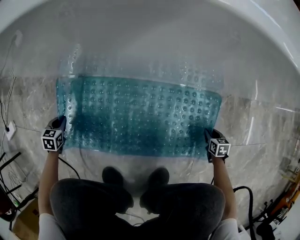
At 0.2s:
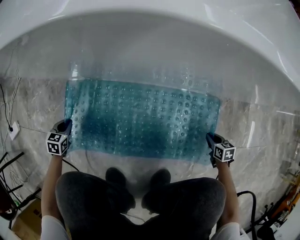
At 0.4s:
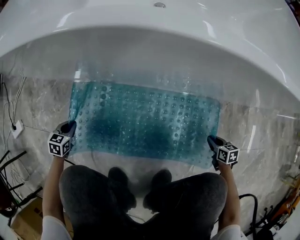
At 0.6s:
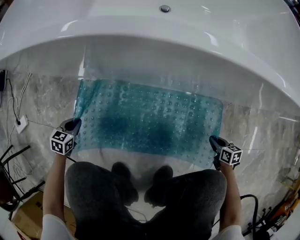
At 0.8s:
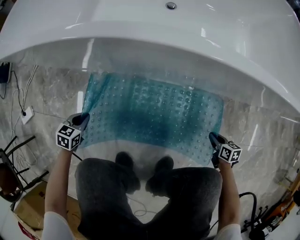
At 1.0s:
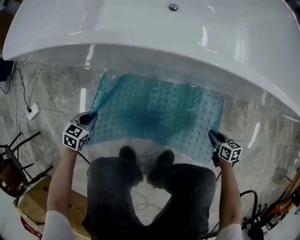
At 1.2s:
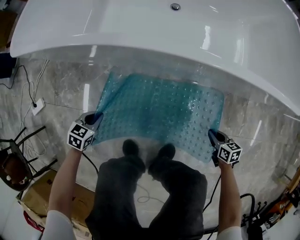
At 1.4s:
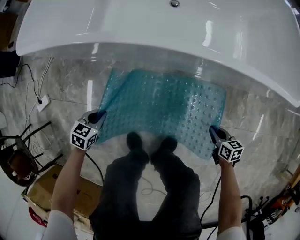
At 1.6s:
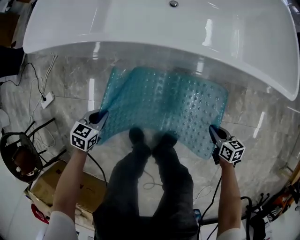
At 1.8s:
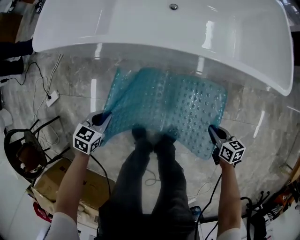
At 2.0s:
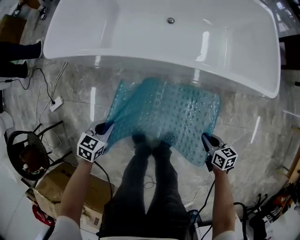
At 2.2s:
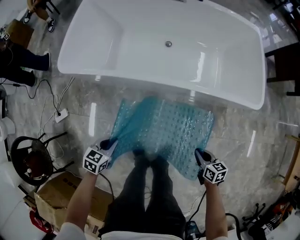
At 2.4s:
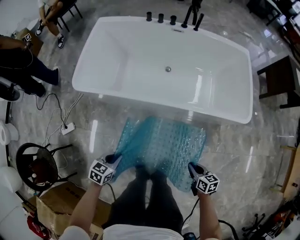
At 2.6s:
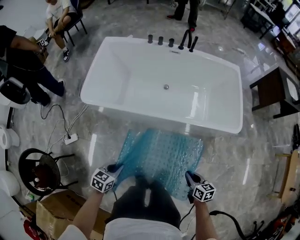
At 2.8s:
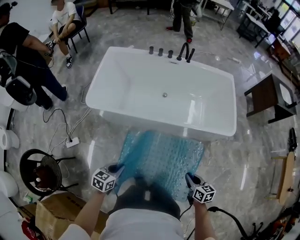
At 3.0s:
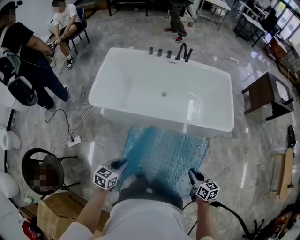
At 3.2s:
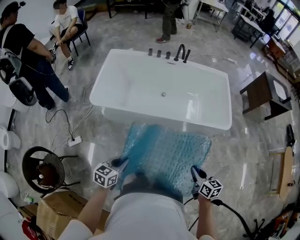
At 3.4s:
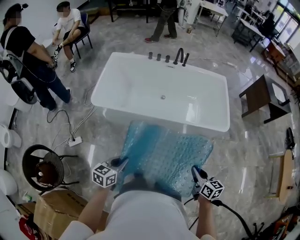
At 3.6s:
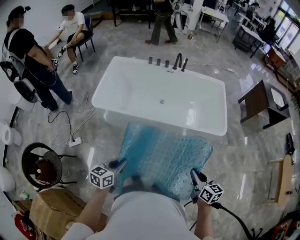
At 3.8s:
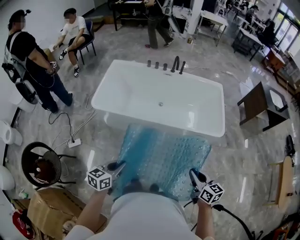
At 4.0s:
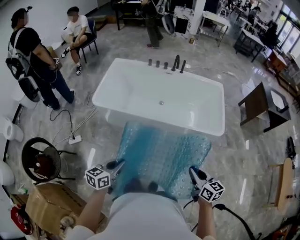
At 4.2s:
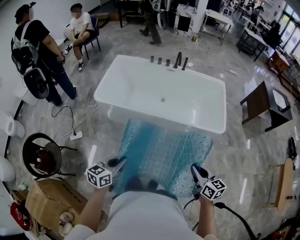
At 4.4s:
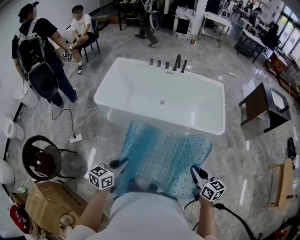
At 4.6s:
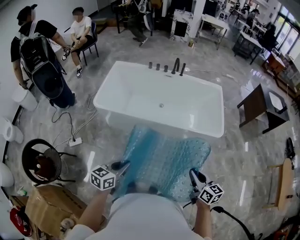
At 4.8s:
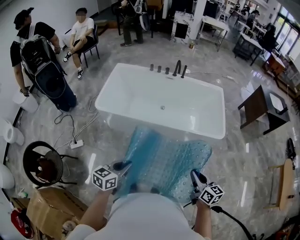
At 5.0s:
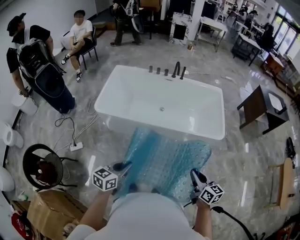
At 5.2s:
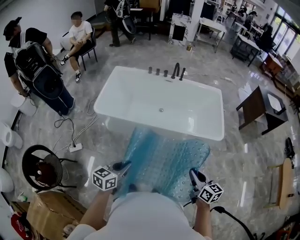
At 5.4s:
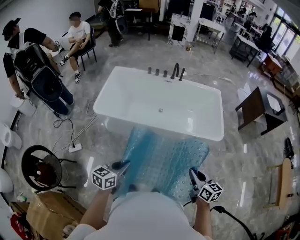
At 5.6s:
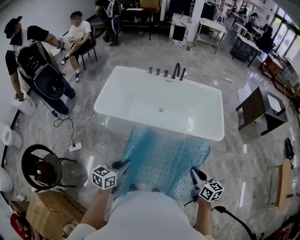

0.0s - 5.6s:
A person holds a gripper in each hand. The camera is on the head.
0.0s - 1.4s: Both grippers travel together upward, approximately 35 cm. The right gripper swivels approximately 20 degrees.
1.4s - 2.8s: Both grippers move upward, about 70 cm.
2.8s - 4.2s: Both grippers move upward, backward and to the right, approximately 30 cm.
4.2s - 5.6s: The right gripper shifts some 5 cm to the left, while the left gripper changes place by about 5 cm.

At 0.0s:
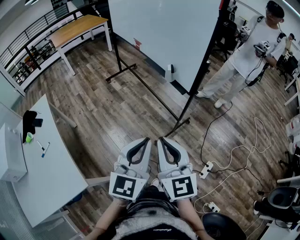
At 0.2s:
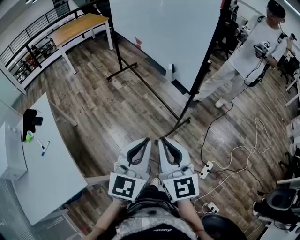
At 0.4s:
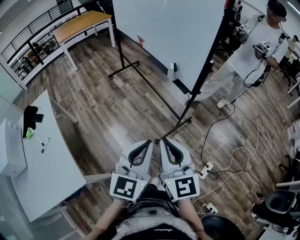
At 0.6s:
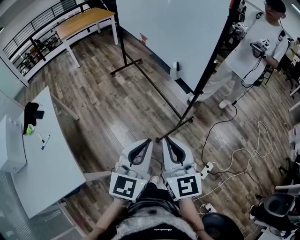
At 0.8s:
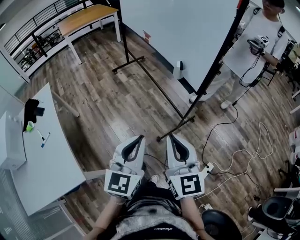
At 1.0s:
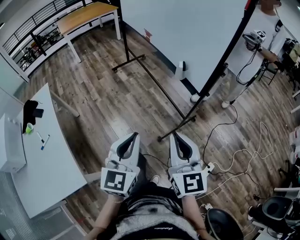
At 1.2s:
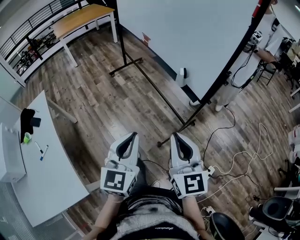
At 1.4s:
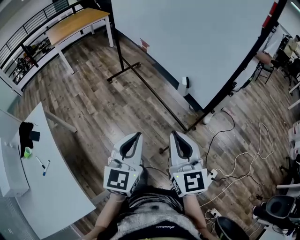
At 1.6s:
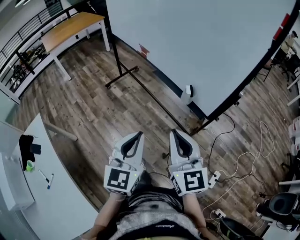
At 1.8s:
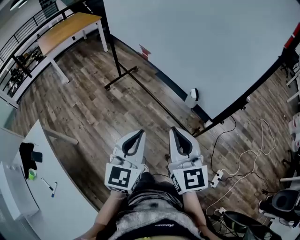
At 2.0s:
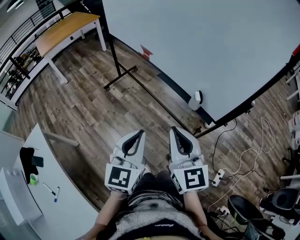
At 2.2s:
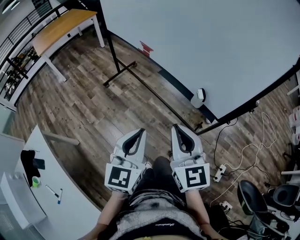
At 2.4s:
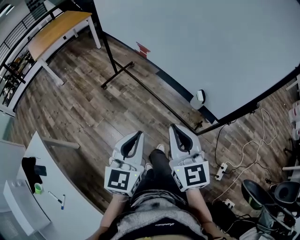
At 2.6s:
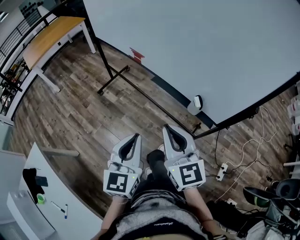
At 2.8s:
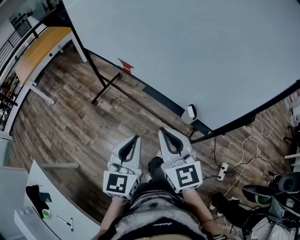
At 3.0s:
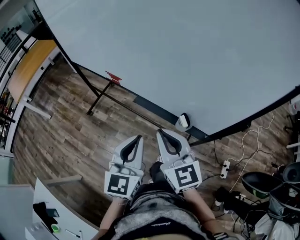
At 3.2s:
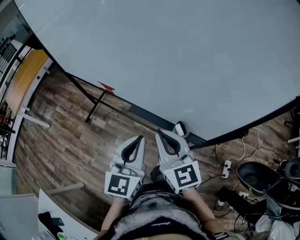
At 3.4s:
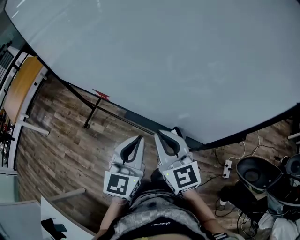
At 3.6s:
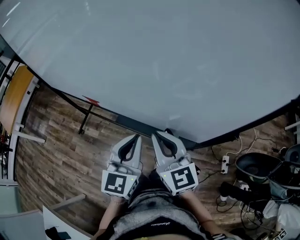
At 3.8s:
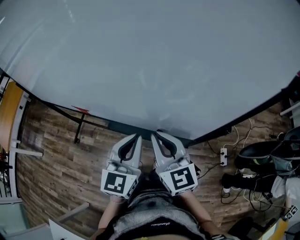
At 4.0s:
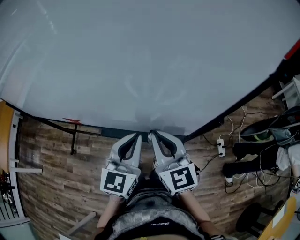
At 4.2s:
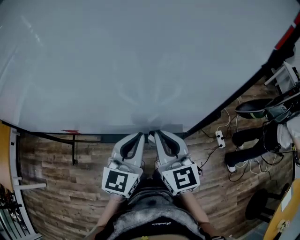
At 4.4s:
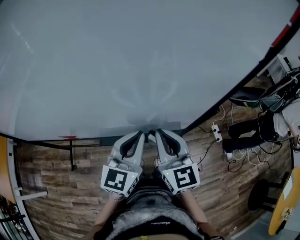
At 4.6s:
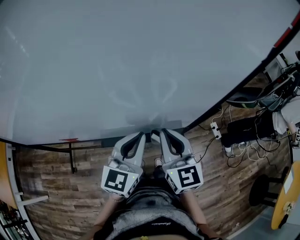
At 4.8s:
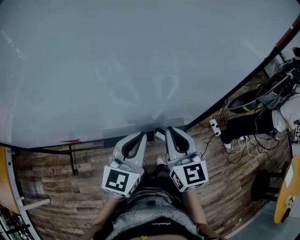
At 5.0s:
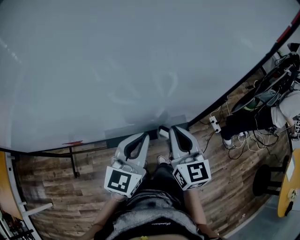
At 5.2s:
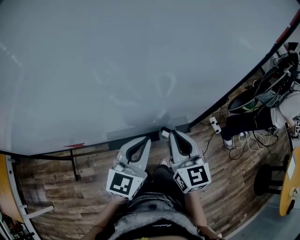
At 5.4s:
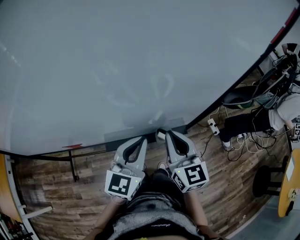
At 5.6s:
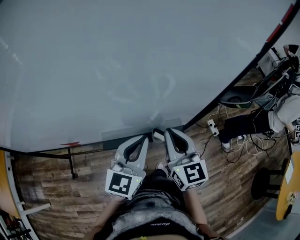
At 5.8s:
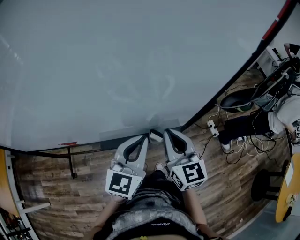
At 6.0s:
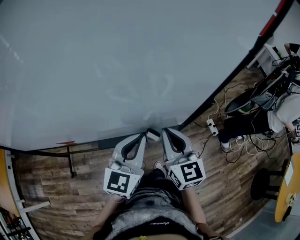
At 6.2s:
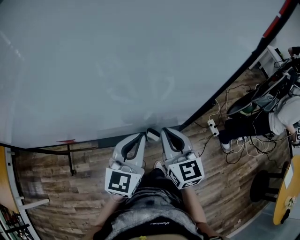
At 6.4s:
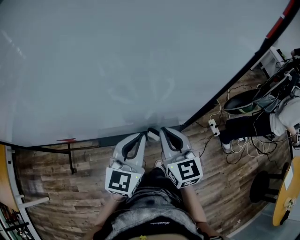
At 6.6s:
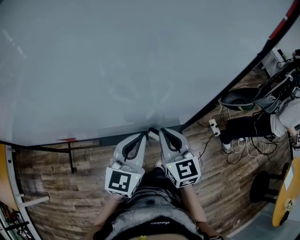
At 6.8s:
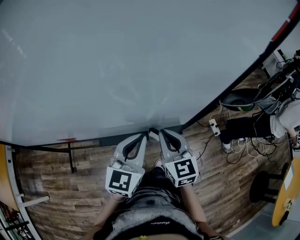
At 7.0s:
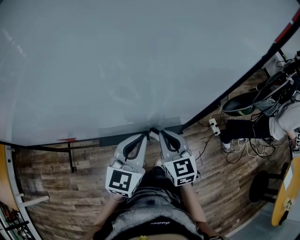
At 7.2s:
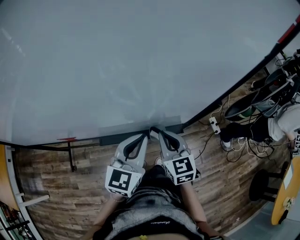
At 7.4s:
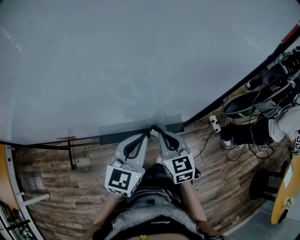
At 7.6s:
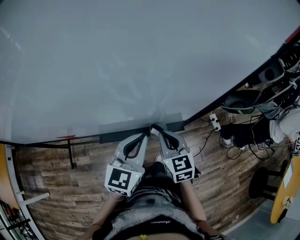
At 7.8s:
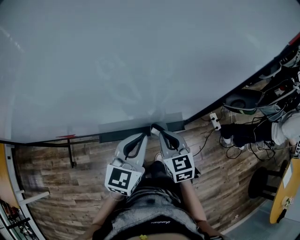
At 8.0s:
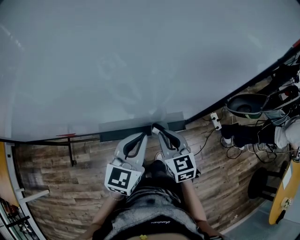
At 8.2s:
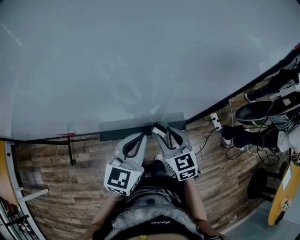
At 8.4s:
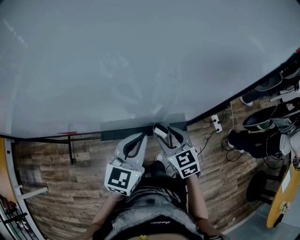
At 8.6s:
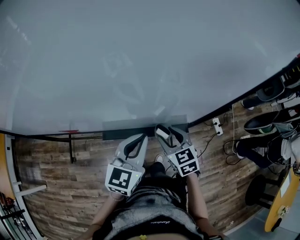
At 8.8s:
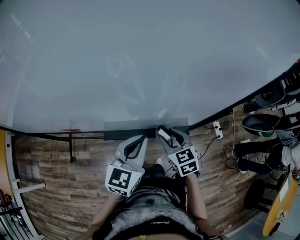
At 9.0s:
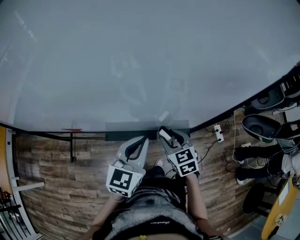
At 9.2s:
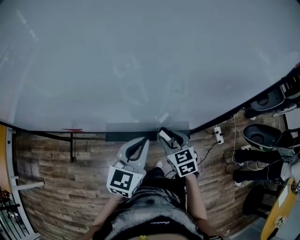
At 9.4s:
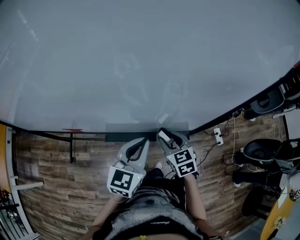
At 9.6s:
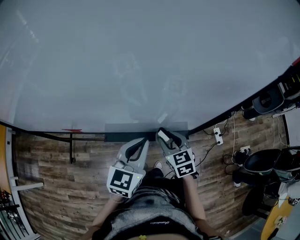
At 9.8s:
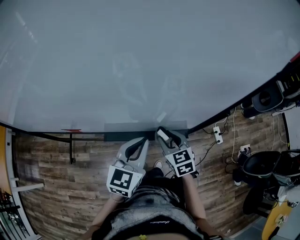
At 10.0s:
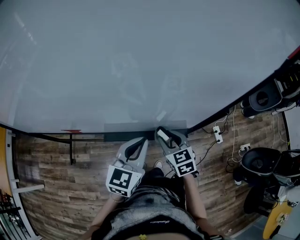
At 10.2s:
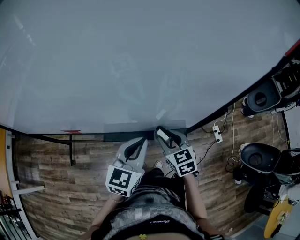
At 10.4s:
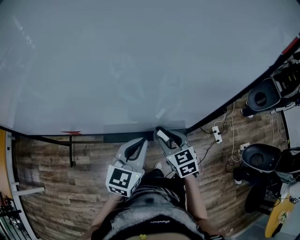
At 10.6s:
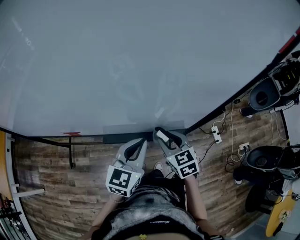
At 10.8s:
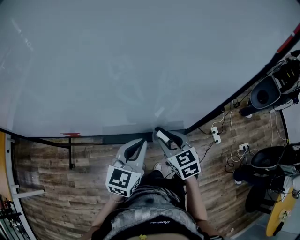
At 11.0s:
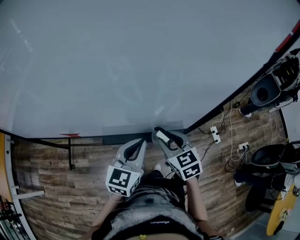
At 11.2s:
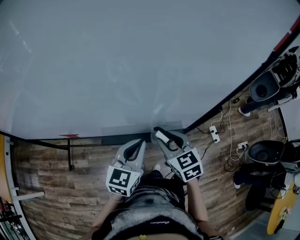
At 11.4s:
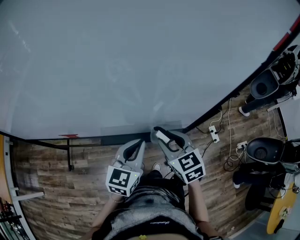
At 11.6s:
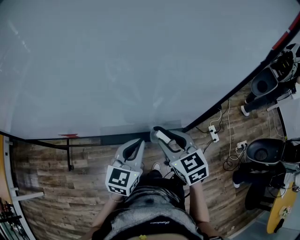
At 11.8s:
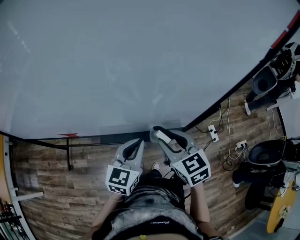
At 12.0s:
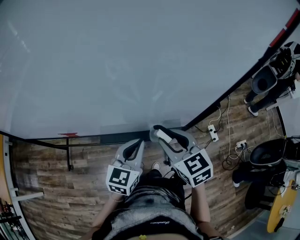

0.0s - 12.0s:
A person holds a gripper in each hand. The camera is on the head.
0.0s - 1.6s: The left gripper is displaced forward and to the left by about 30 cm. The right gripper moves forward, approximately 25 cm.
1.6s - 3.0s: The grippers both shift forward by some 25 cm.
3.0s - 4.4s: The left gripper shifts by about 20 cm, and turns by some 40 degrees. The right gripper ends up approximately 15 cm from where it was, and turns by roughly 40 degrees.
4.4s - 6.0s: The grippers stay close to where they were, moving slightly.
6.0s - 7.6s: The right gripper travels downward by approximately 10 cm.
7.6s - 9.0s: The right gripper opens its fingers.
9.0s - 10.4s: There are only small adjustments of the grippers.
10.4s - 12.0s: The right gripper goes some 10 cm upward.

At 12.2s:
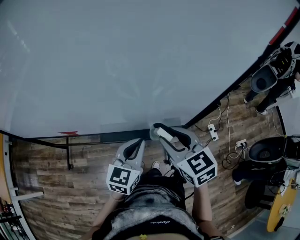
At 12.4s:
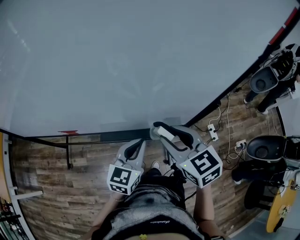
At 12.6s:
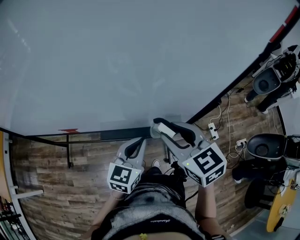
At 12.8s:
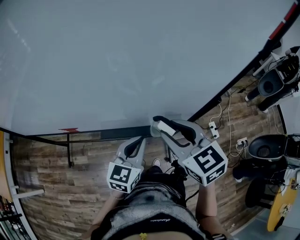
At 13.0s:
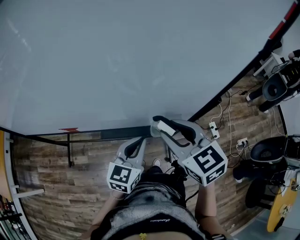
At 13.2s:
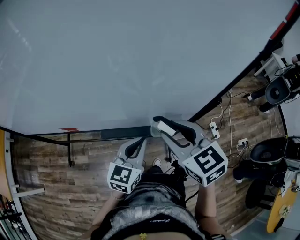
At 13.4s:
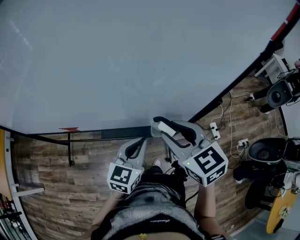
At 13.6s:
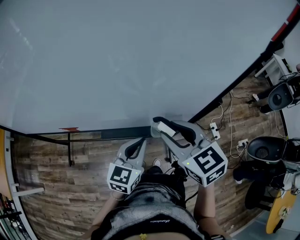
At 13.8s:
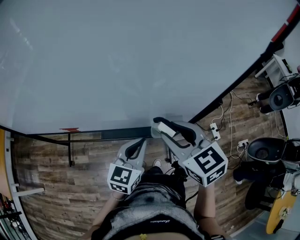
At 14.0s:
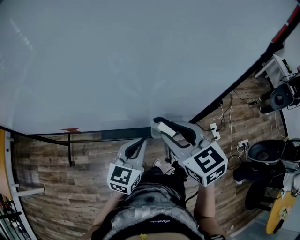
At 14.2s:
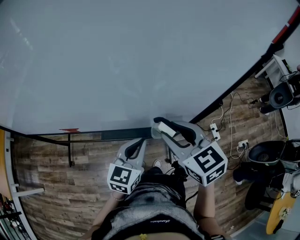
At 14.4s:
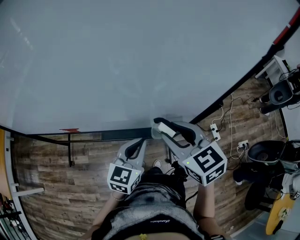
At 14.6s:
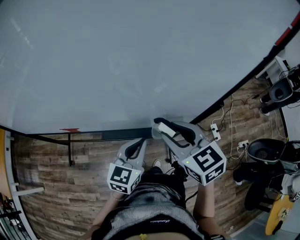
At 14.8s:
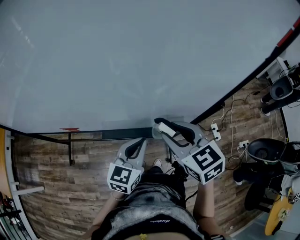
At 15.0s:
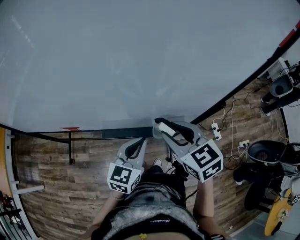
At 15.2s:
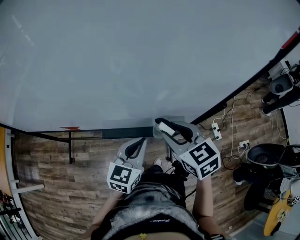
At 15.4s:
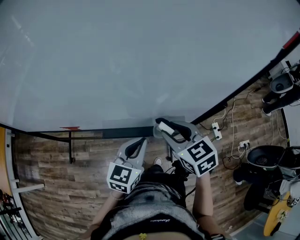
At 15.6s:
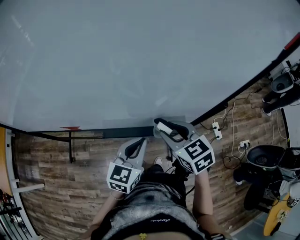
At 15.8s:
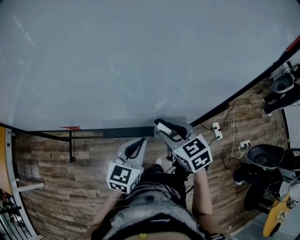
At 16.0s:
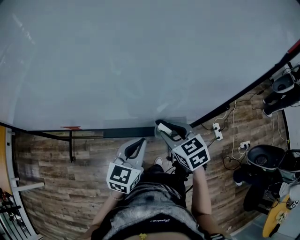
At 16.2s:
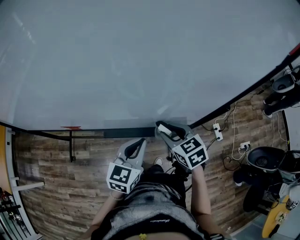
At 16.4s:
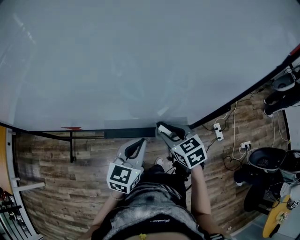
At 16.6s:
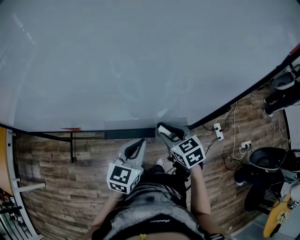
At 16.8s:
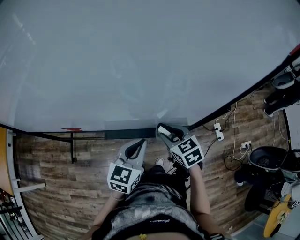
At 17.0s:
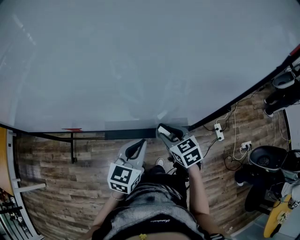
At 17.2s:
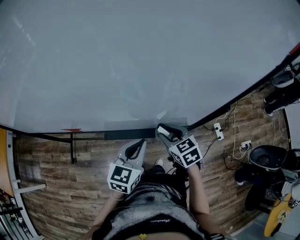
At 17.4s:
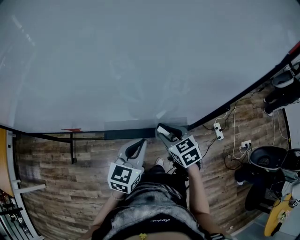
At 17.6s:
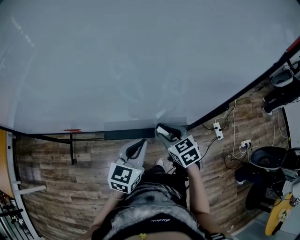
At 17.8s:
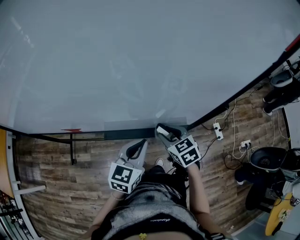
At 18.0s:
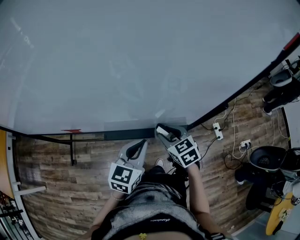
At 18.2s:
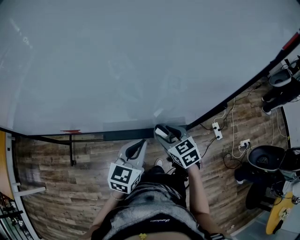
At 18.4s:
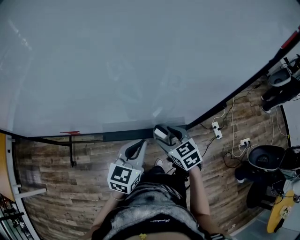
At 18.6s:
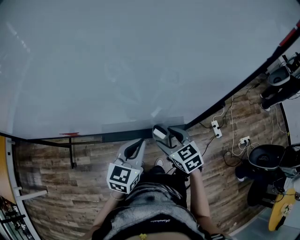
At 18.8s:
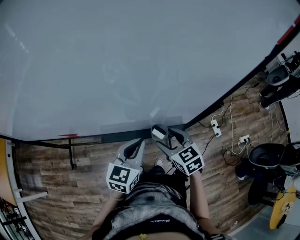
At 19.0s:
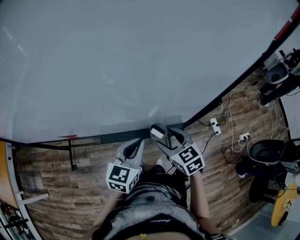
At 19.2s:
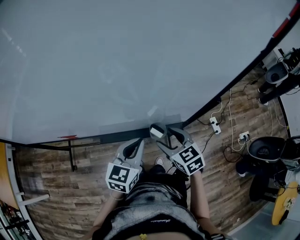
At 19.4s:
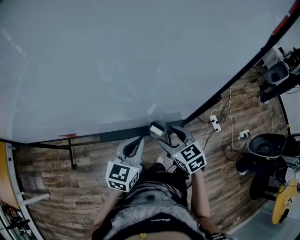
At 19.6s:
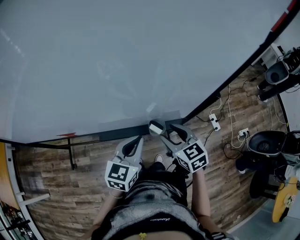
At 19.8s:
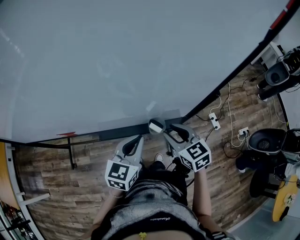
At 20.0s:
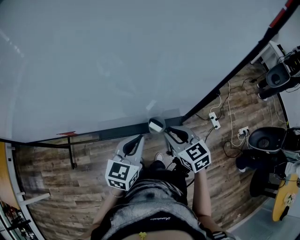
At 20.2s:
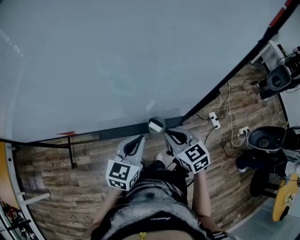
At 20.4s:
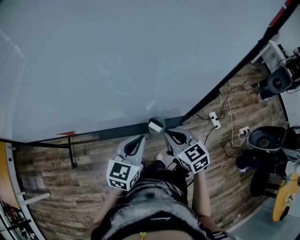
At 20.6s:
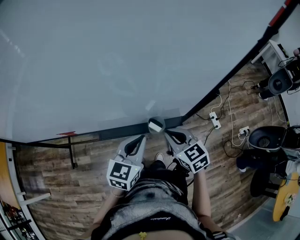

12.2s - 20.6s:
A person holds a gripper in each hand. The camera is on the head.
12.2s - 15.0s: The grippers move only a little.
15.0s - 16.4s: The right gripper heads downward, covering approximately 10 cm.
16.4s - 17.8s: The grippers make only small movements.
17.8s - 19.2s: The right gripper opens up.
19.2s - 20.6s: The right gripper closes up.
